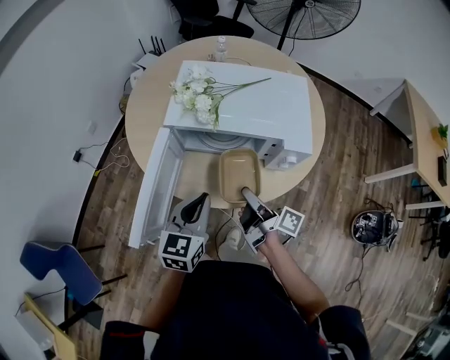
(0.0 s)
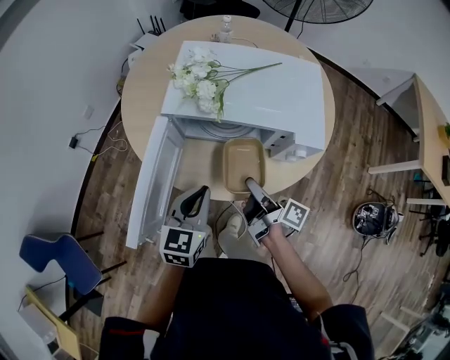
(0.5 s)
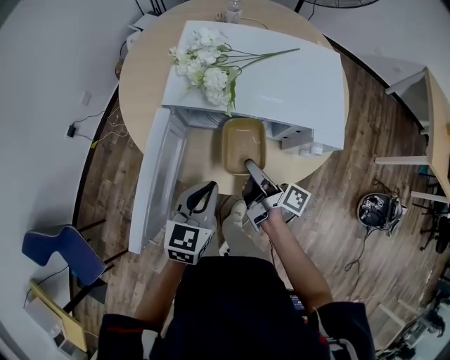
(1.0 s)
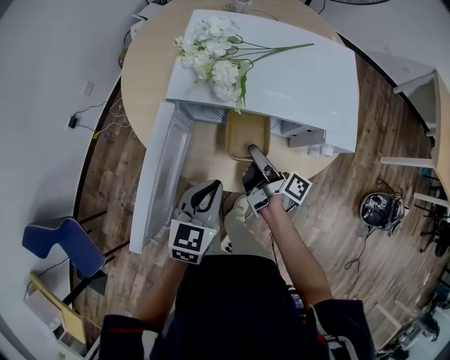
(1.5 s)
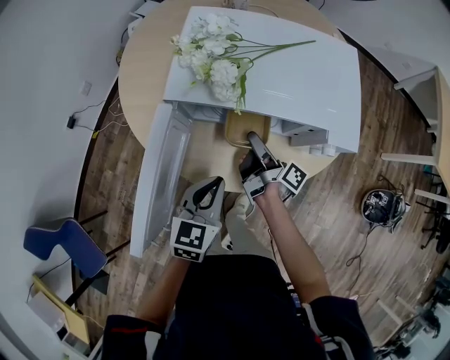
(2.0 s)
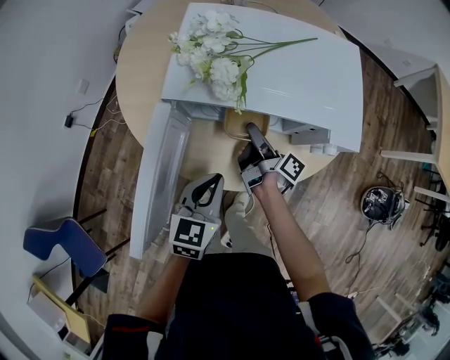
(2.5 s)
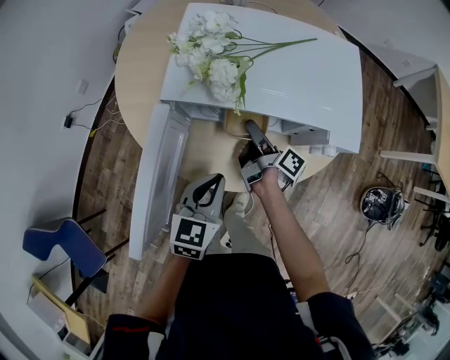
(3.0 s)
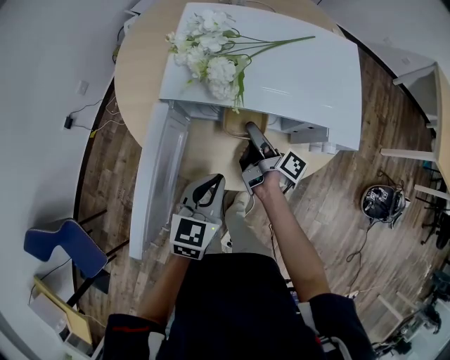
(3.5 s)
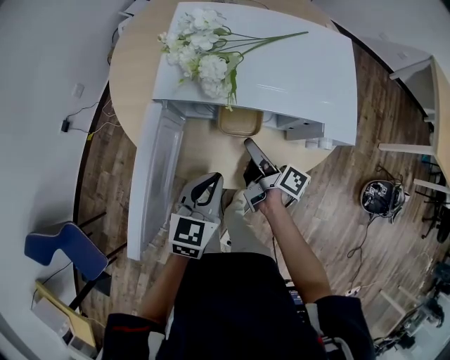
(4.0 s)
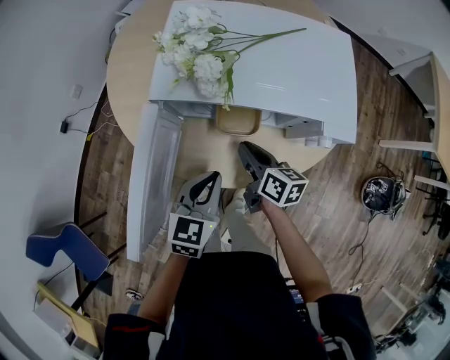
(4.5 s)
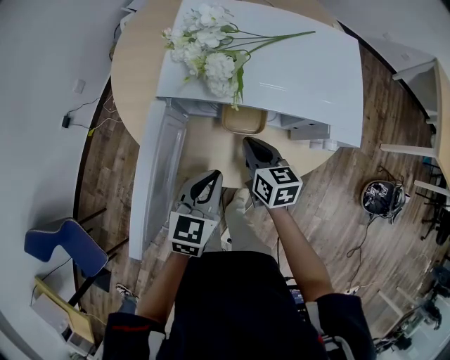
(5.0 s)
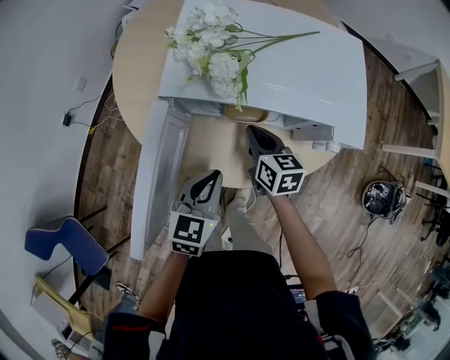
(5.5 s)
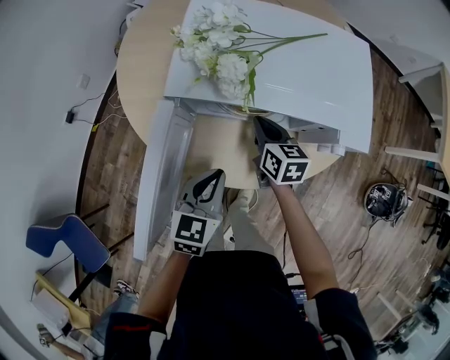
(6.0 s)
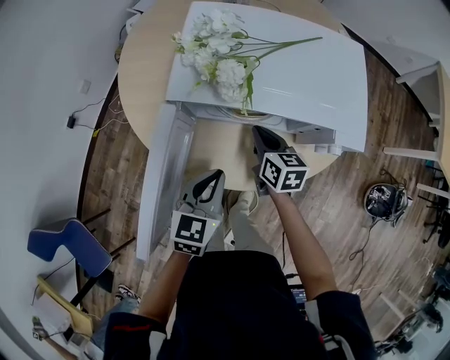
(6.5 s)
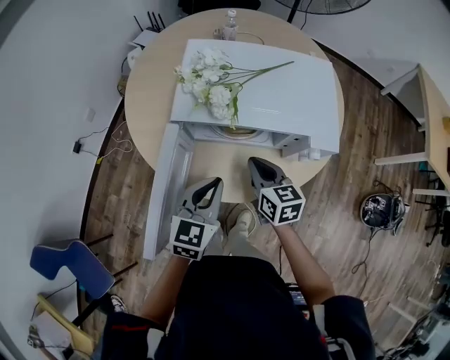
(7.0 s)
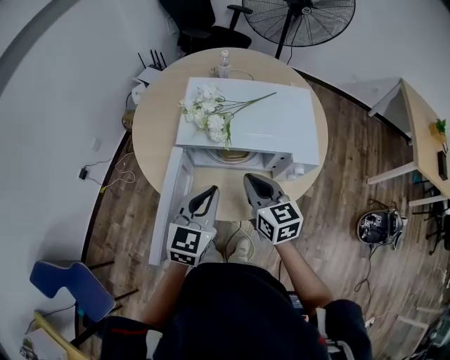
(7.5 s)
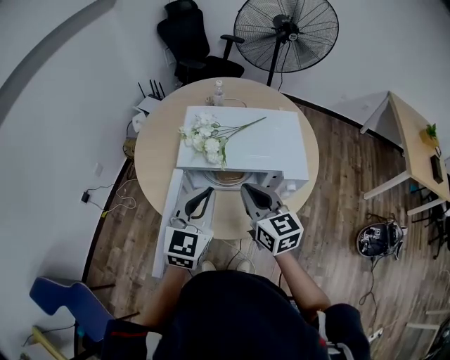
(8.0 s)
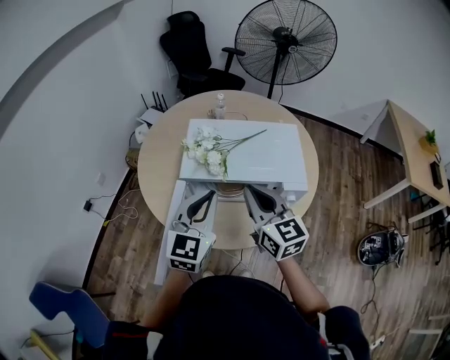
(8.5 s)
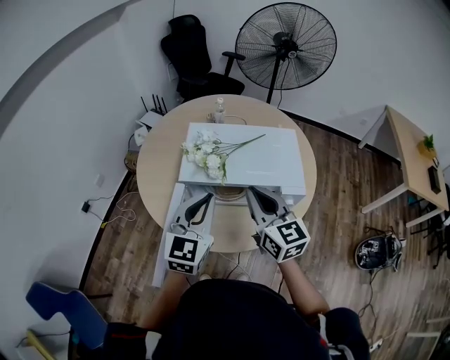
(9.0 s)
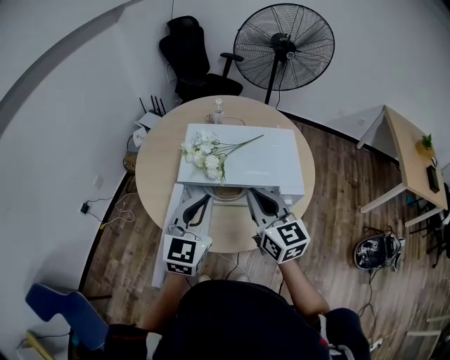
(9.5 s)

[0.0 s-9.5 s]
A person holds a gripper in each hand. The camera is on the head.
0.0 to 2.0 s: The left gripper moves downward, about 10 cm, while the right gripper shifts about 15 cm forward and downward.
2.0 to 4.0 s: There are only small adjustments of the grippers.
4.0 to 5.5 s: The right gripper shifts by approximately 5 cm, rolls counterclockwise, seen from behind, by roughly 50 degrees, and closes.
5.5 to 7.5 s: The right gripper moves upward and backward, some 20 cm. Meanwhile the left gripper is displaced upward by some 15 cm.
7.5 to 9.5 s: The two grippers go approximately 10 cm upward.

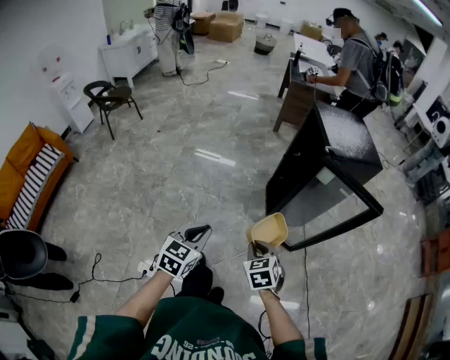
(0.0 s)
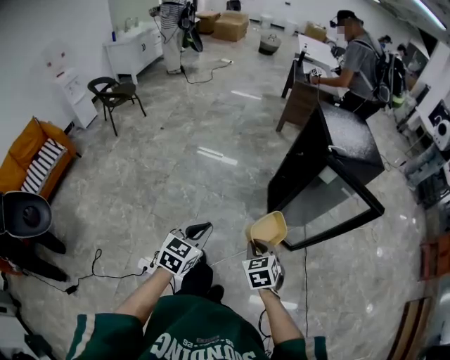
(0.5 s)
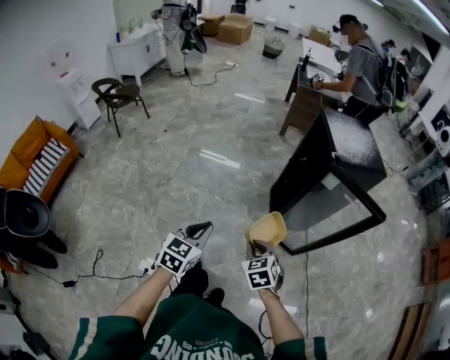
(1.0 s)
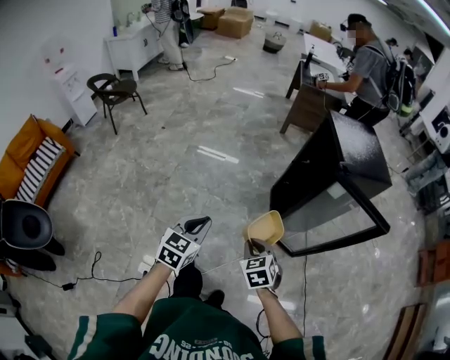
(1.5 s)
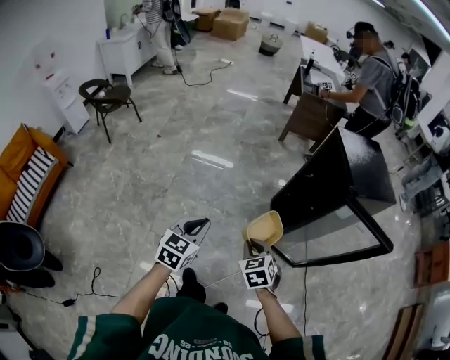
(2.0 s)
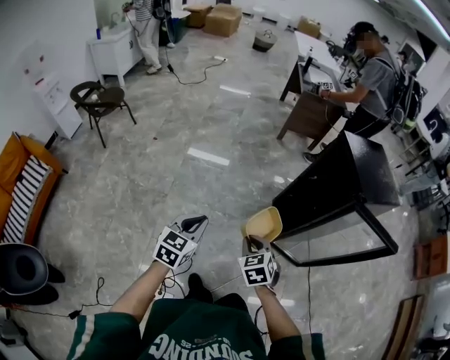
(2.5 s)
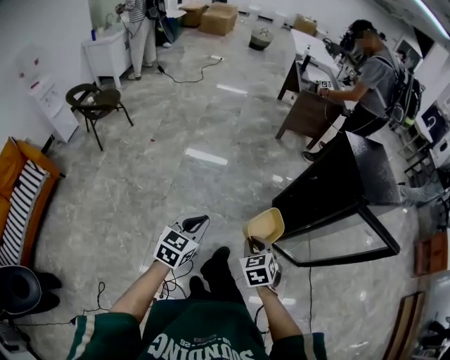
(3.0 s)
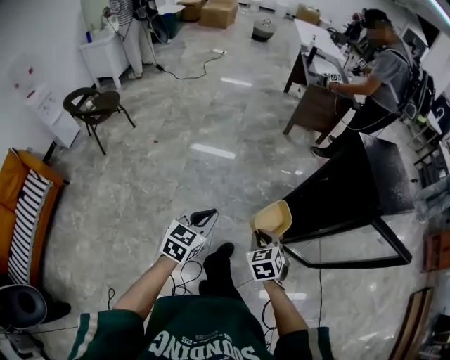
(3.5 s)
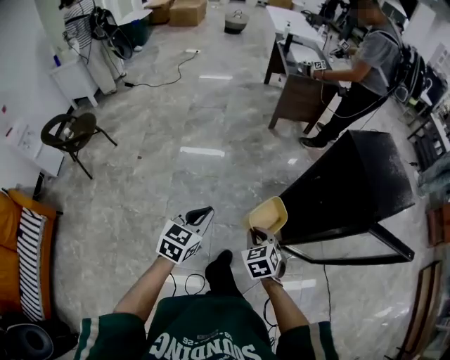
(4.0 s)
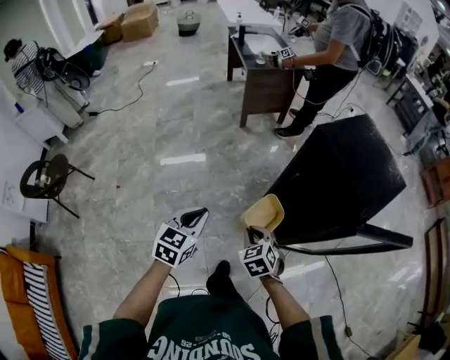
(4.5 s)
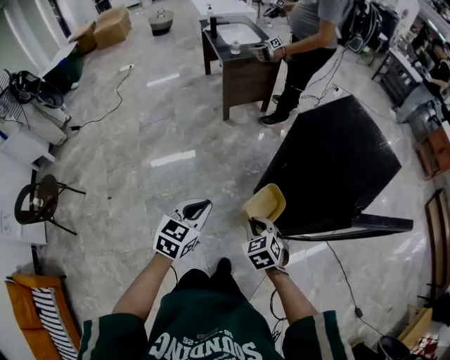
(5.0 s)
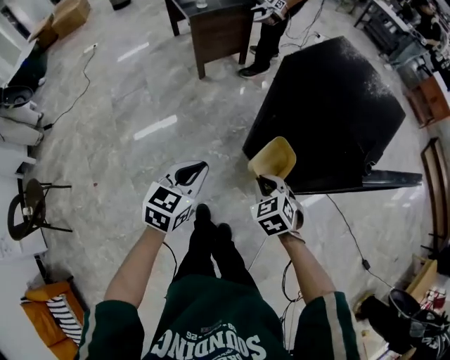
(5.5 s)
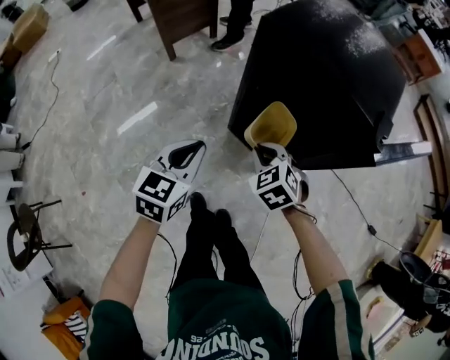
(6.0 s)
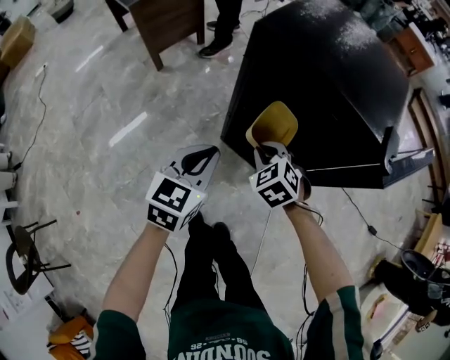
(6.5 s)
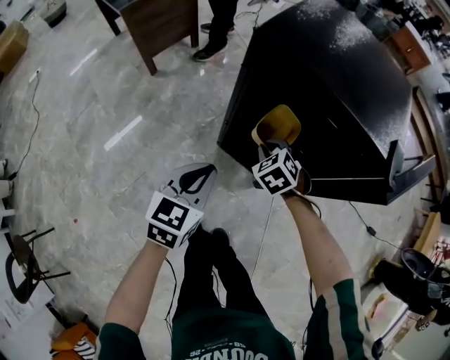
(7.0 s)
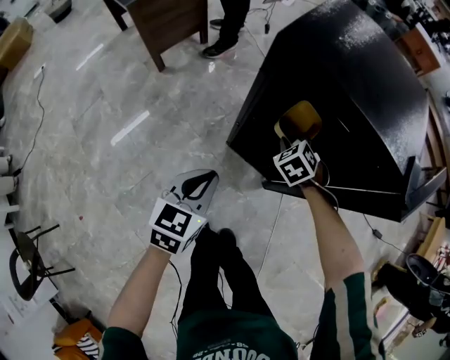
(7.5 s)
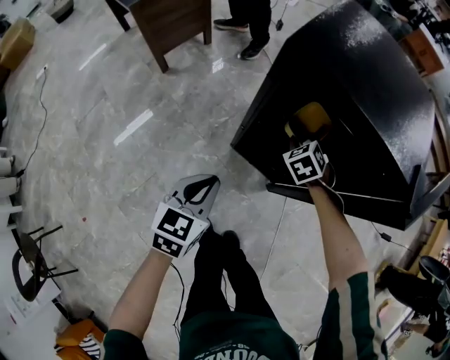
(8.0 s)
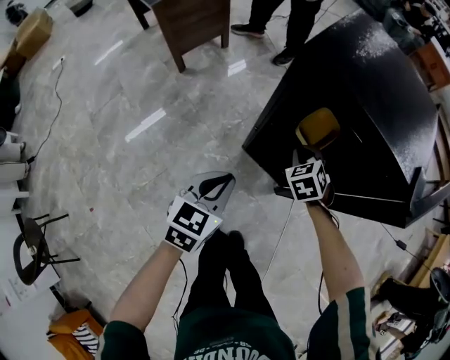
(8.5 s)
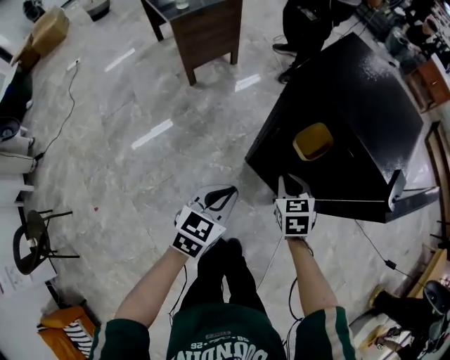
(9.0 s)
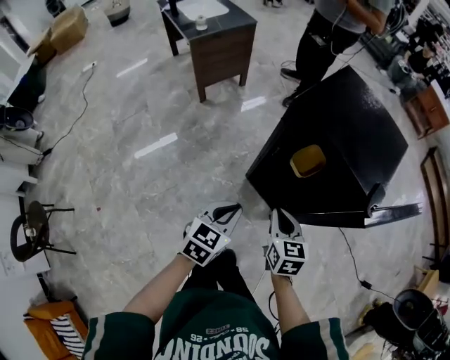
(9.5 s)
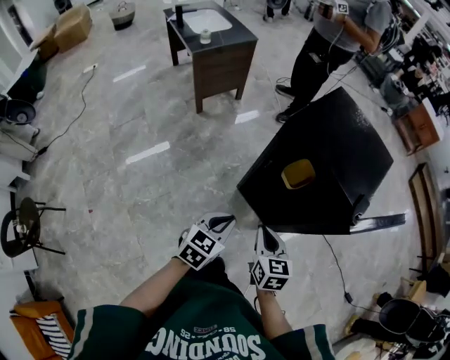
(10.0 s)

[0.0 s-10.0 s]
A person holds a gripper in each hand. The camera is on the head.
0.0 to 2.0 s: The two grippers go about 20 cm forward and to the left.
2.0 to 4.0 s: The grippers both shift forward by approximately 25 cm.
4.0 to 6.0 s: The left gripper shifts by about 30 cm, and turns by about 40 degrees. Meanwhile the right gripper changes place by roughly 30 cm, and turns by some 20 degrees.
6.0 to 8.0 s: The left gripper moves downward and forward, roughly 10 cm; the right gripper moves forward and downward, about 25 cm.
8.0 to 10.0 s: The right gripper heads backward and upward, covering some 35 cm, and rotates approximately 50 degrees. Meanwhile the left gripper travels upward and backward by approximately 15 cm.

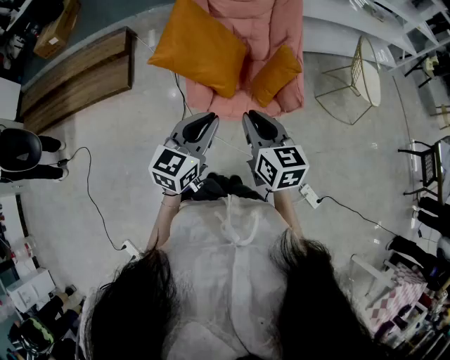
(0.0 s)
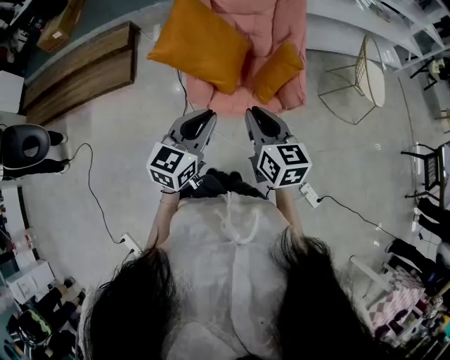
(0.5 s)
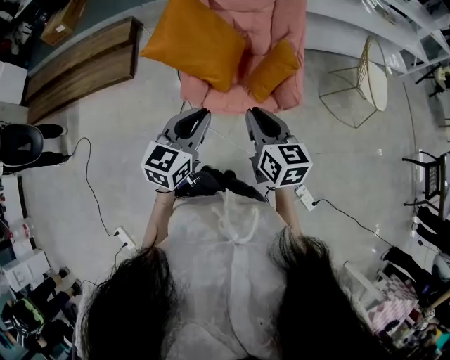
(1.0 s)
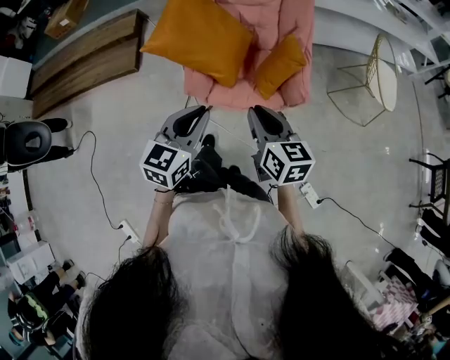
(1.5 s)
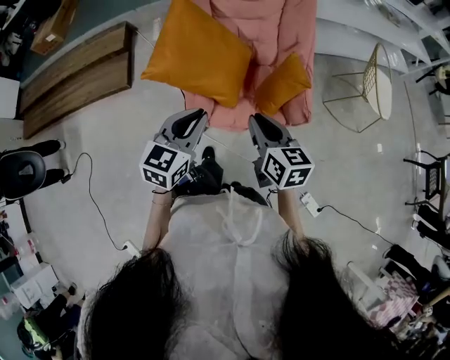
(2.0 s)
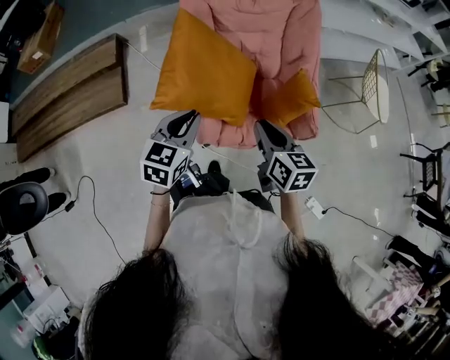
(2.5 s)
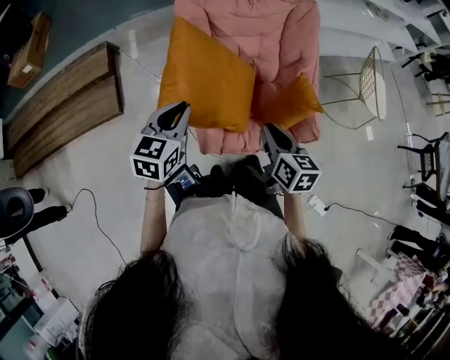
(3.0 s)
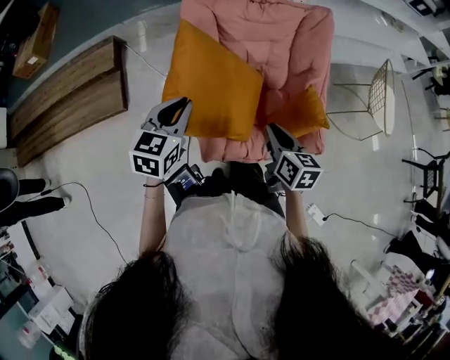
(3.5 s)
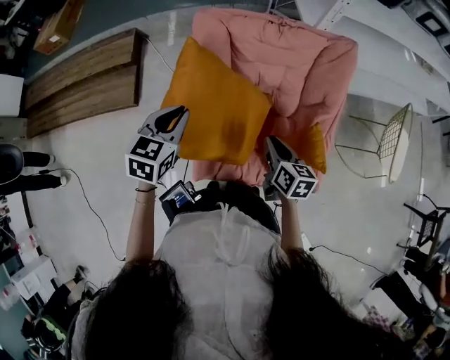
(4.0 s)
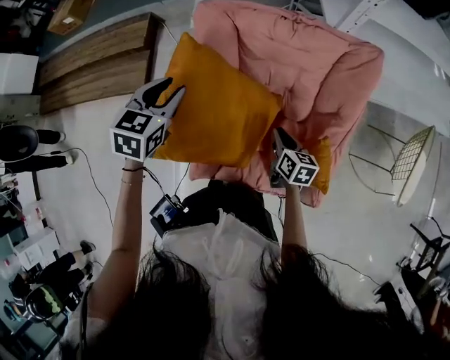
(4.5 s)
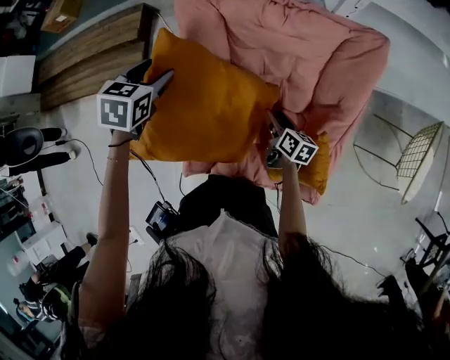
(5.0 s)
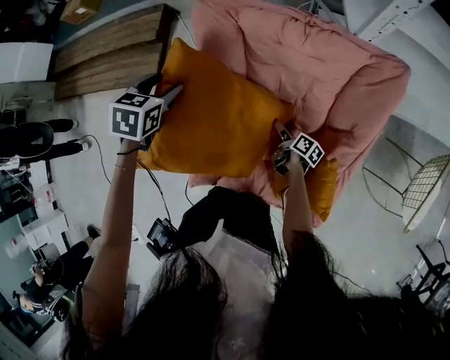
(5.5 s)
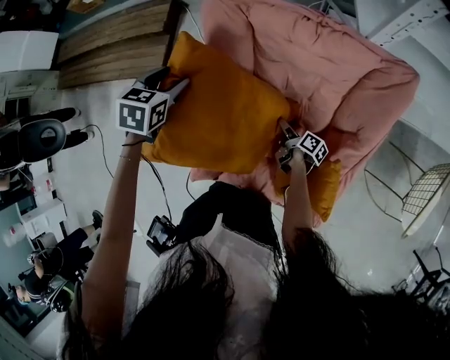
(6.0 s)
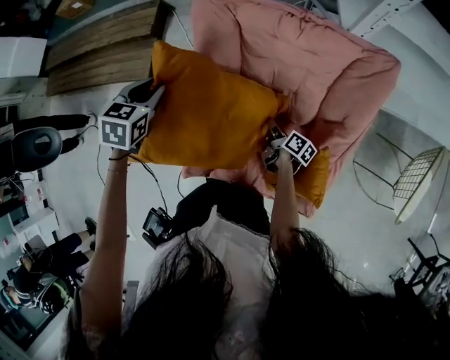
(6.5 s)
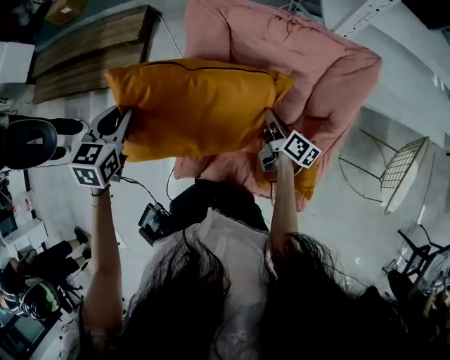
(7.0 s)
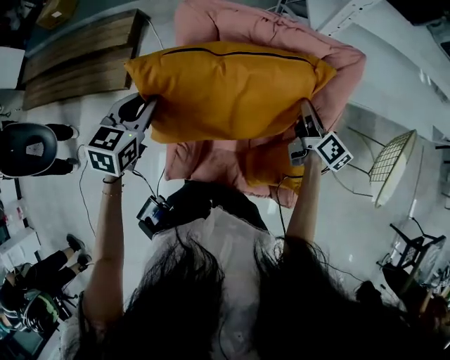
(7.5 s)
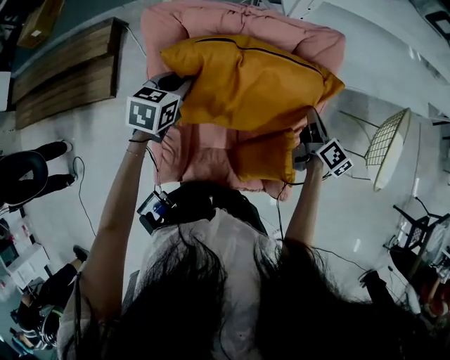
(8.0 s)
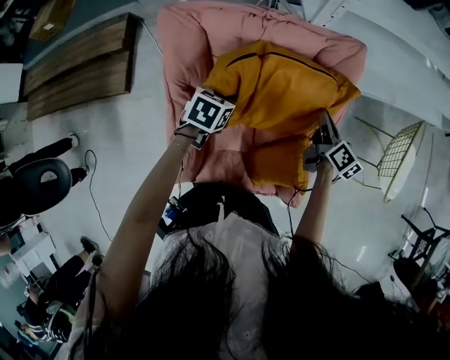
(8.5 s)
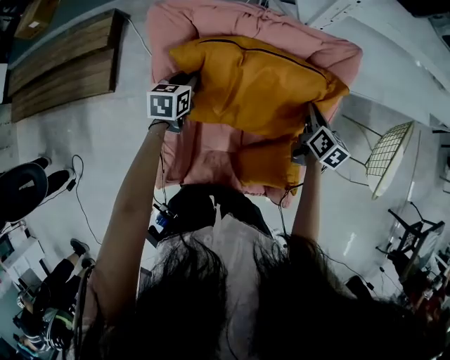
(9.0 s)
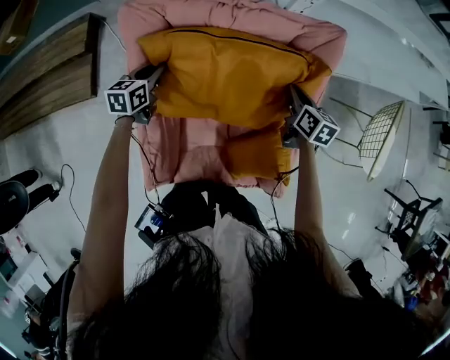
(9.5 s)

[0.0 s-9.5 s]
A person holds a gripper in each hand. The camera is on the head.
0.0 to 2.0 s: The left gripper travels forward by some 10 cm, while the right gripper travels forward and downward by some 10 cm.
2.0 to 4.0 s: The right gripper is displaced forward and downward by approximately 30 cm. The left gripper shifts roughly 30 cm forward and to the left.
4.0 to 5.5 s: The right gripper moves downward and forward, roughly 30 cm, turns by some 40 degrees, and opens up, while the left gripper travels forward and downward by roughly 15 cm, swivels approximately 20 degrees, and opens its fingers.
5.5 to 7.5 s: The right gripper shifts some 30 cm upward and to the right, swivels approximately 30 degrees, and closes its fingers; the left gripper goes approximately 10 cm backward and upward, and closes its fingers.
7.5 to 9.5 s: The right gripper is displaced downward and to the right by about 10 cm, and turns by roughly 30 degrees. Meanwhile the left gripper travels downward and forward by some 25 cm.
